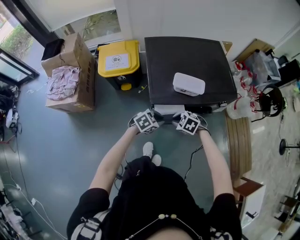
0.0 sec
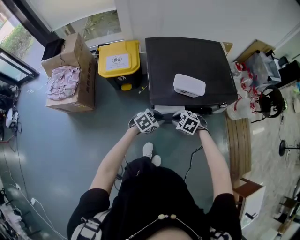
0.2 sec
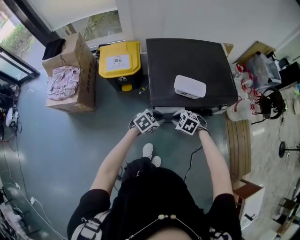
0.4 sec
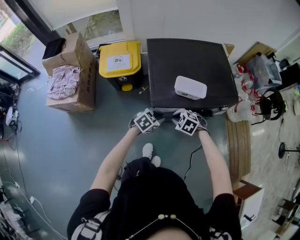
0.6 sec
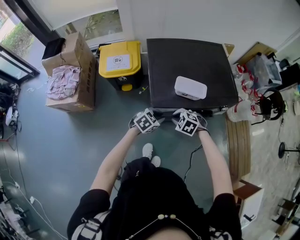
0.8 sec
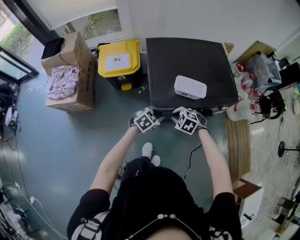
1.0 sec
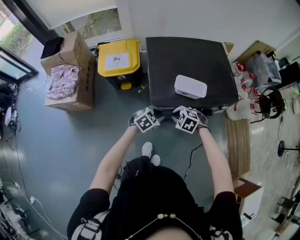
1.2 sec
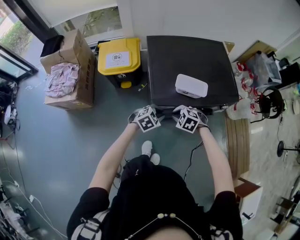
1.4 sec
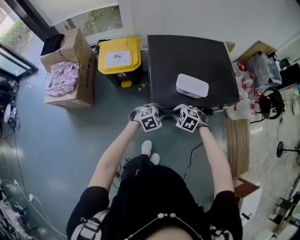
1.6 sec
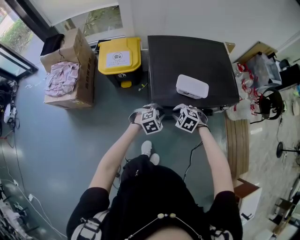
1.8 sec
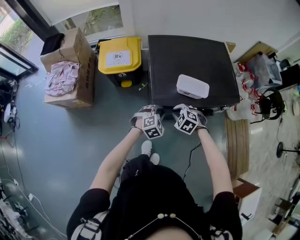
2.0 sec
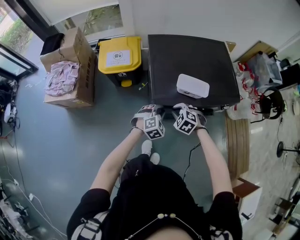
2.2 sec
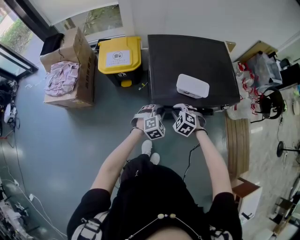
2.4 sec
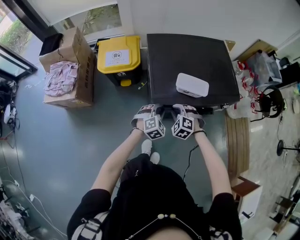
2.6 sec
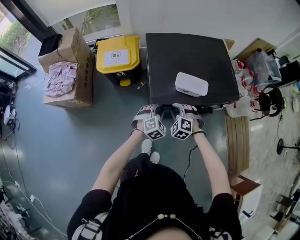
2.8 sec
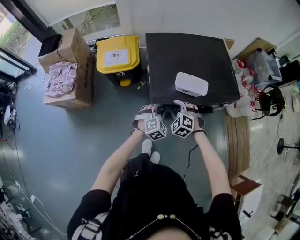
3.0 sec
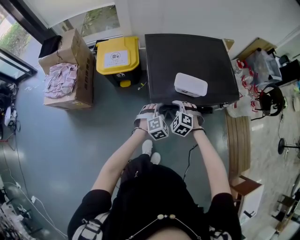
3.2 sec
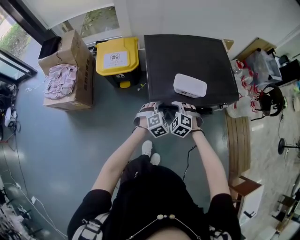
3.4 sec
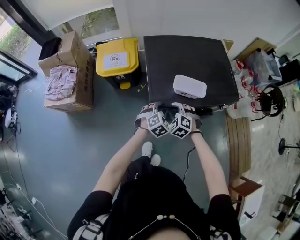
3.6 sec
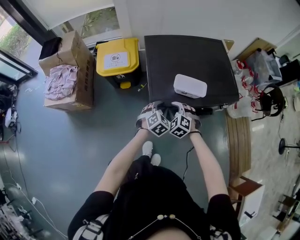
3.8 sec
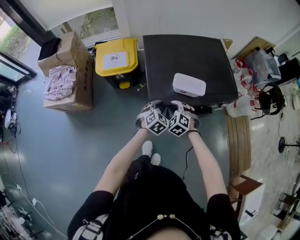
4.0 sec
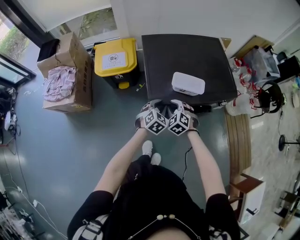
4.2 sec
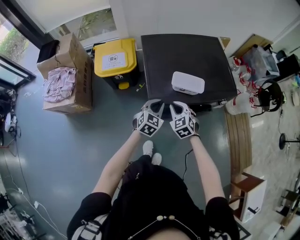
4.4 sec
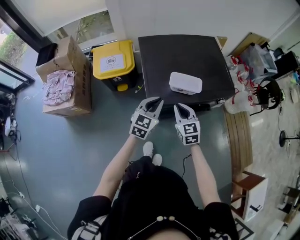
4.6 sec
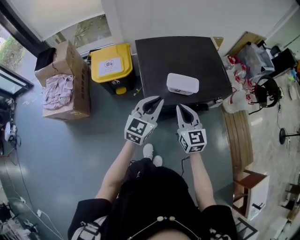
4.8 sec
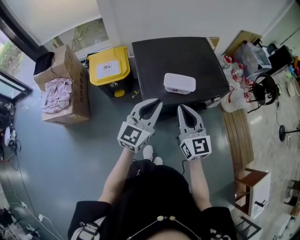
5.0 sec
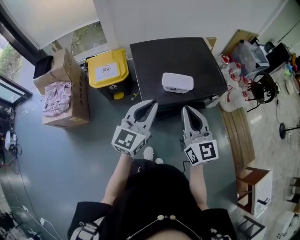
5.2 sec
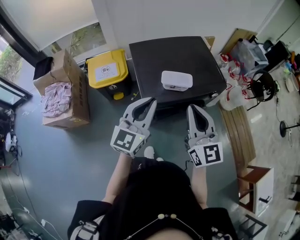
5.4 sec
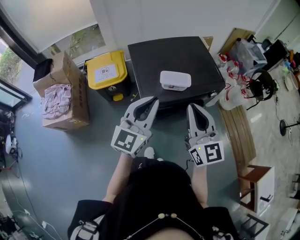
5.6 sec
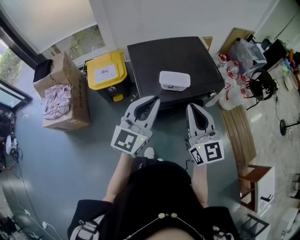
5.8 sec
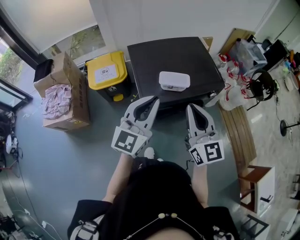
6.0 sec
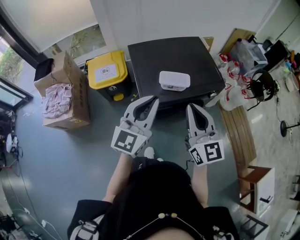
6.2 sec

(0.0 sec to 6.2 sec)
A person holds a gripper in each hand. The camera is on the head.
0.0 sec - 1.6 sec: The grippers move only a little.
1.6 sec - 3.2 sec: The right gripper opens; the left gripper swivels about 20 degrees.
3.2 sec - 4.6 sec: Both grippers move upward, about 10 cm. The right gripper rotates around the line of its fingers by some 50 degrees, clockwise from behind, and closes up; the left gripper changes its angle by about 50 degrees.
4.6 sec - 6.2 sec: The grippers both shift upward and backward by about 25 cm. The left gripper rotates roughly 20 degrees, while the right gripper changes its angle by about 30 degrees.

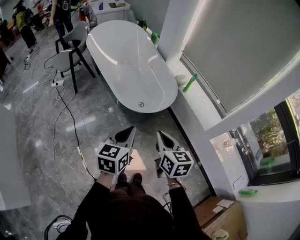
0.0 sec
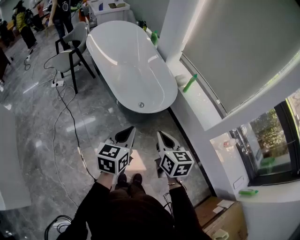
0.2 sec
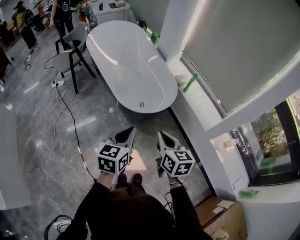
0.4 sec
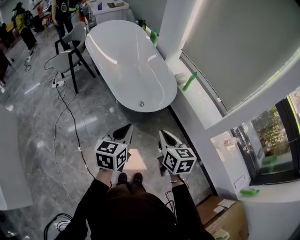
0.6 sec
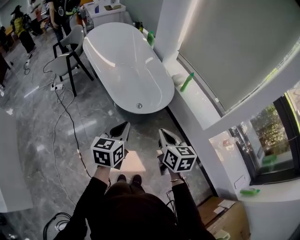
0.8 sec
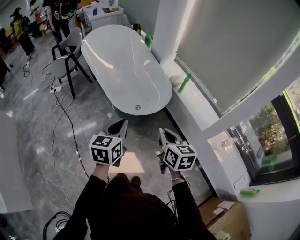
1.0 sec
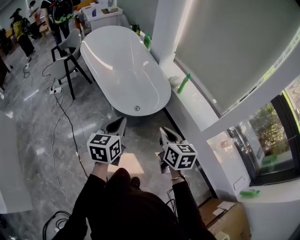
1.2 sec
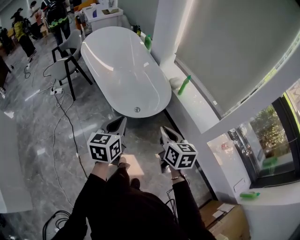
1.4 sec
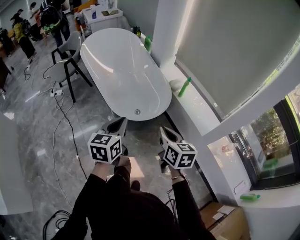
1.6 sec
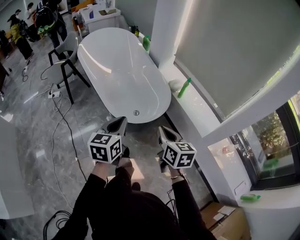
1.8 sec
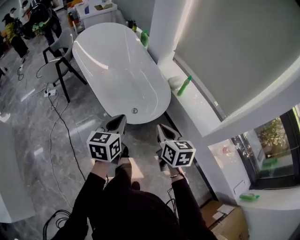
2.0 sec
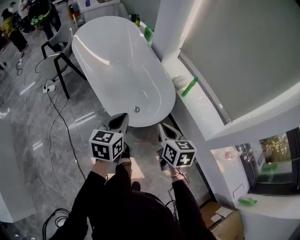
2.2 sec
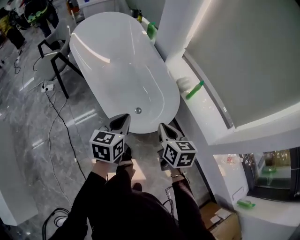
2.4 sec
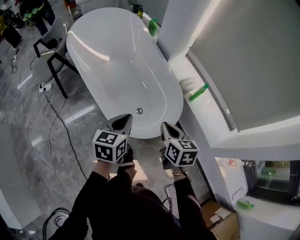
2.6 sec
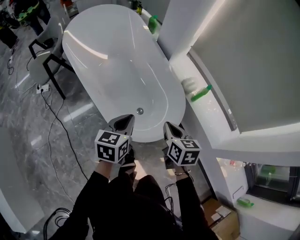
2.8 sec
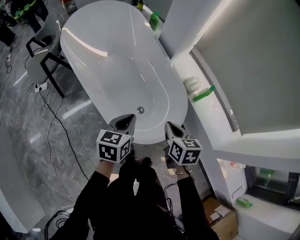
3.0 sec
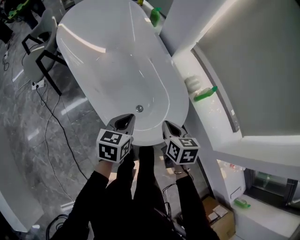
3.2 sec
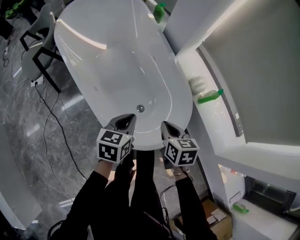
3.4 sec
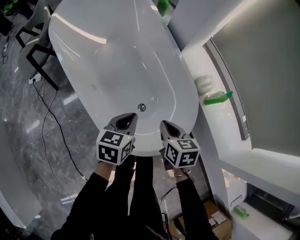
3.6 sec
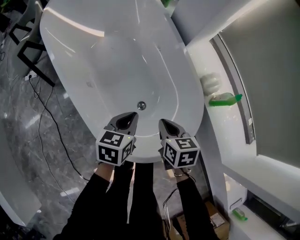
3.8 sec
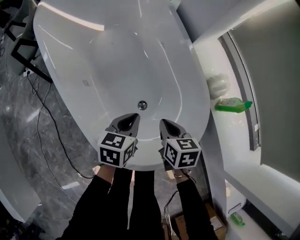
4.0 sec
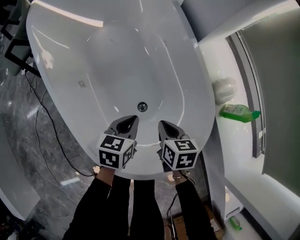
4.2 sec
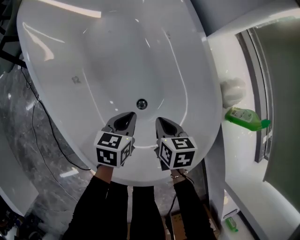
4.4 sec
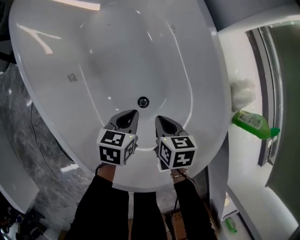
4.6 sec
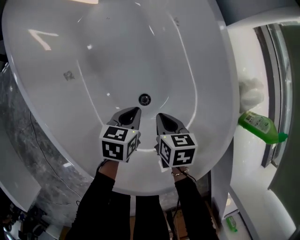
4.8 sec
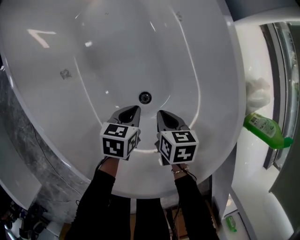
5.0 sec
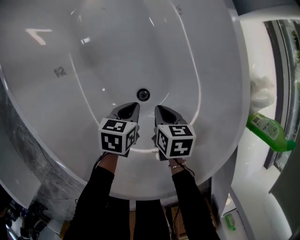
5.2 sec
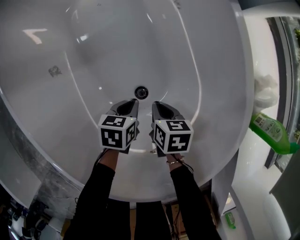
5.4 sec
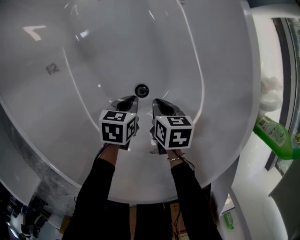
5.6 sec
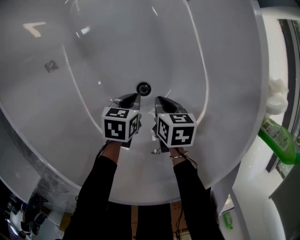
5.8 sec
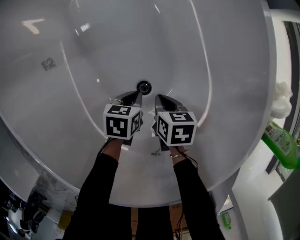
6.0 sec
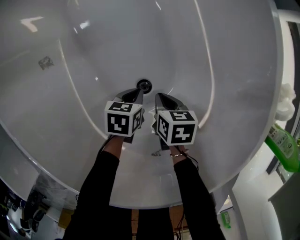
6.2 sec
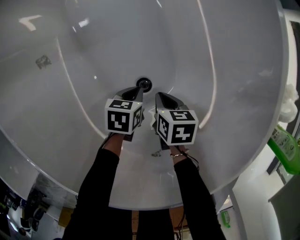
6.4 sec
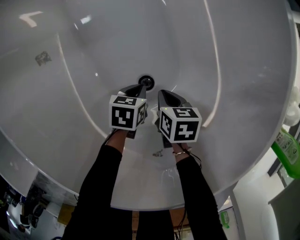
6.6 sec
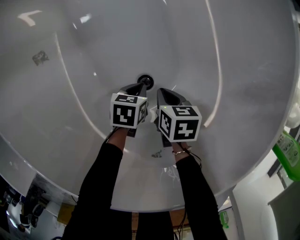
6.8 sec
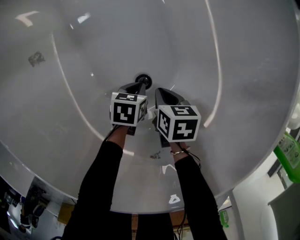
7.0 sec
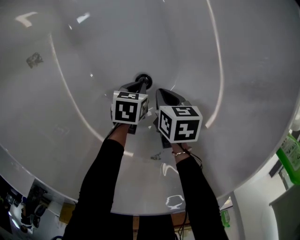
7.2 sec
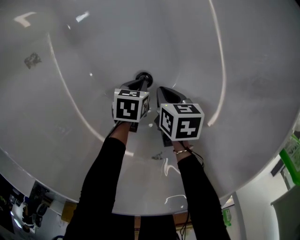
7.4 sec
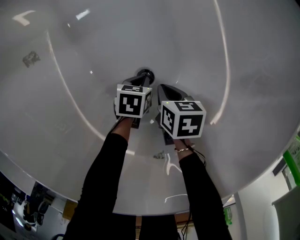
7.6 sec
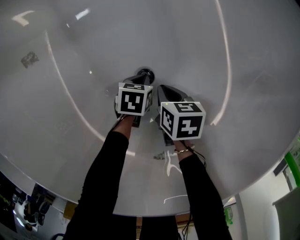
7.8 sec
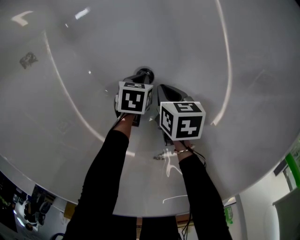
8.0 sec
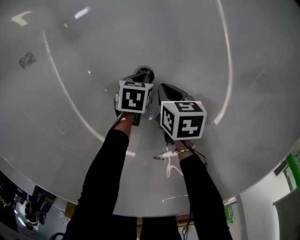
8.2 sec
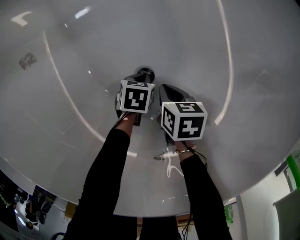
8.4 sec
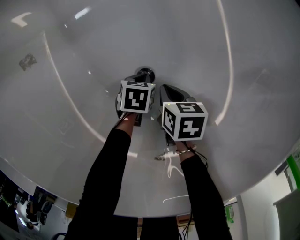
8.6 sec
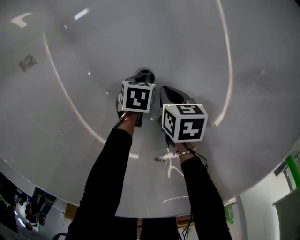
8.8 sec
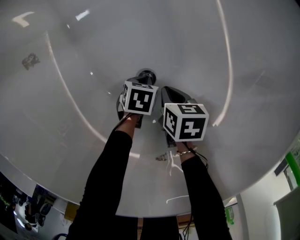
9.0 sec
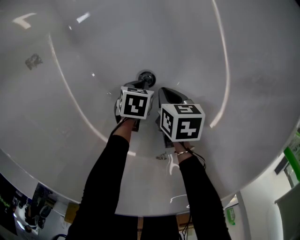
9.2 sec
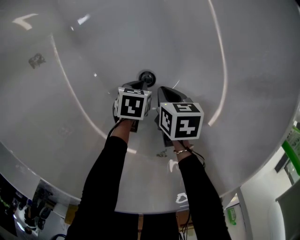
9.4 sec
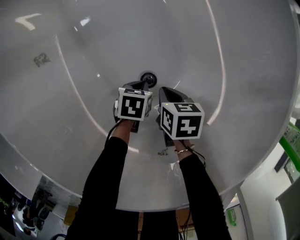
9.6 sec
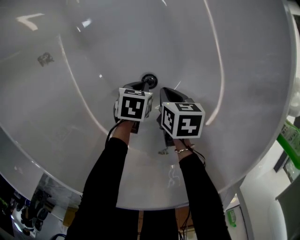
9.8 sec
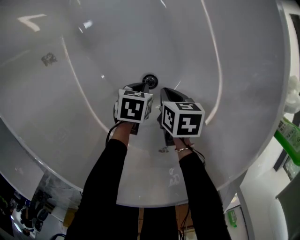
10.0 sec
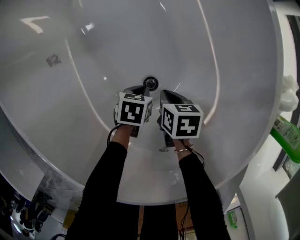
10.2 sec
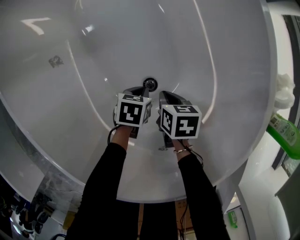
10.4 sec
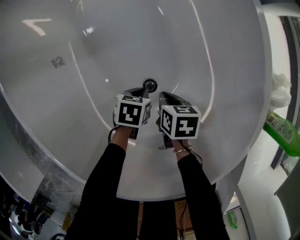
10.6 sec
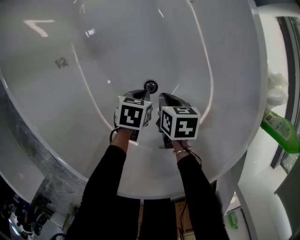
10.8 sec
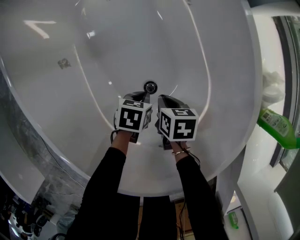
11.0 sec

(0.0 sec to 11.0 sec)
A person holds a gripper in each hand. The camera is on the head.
0.0 sec - 1.6 sec: The right gripper is displaced to the right and forward by some 10 cm; the left gripper travels forward by about 10 cm.
1.6 sec - 3.2 sec: The right gripper heads forward, covering about 30 cm. Meanwhile the left gripper moves forward and downward, about 35 cm.
3.2 sec - 4.8 sec: The left gripper heads downward, covering some 40 cm, and rotates approximately 30 degrees, while the right gripper goes about 40 cm downward and forward, and turns by some 20 degrees.
4.8 sec - 6.2 sec: Both grippers travel together downward, about 15 cm.
6.2 sec - 7.8 sec: The right gripper shifts about 5 cm downward, while the left gripper heads downward, covering some 10 cm.
7.8 sec - 9.4 sec: The grippers make only small movements.
9.4 sec - 11.0 sec: Both grippers travel together upward, roughly 10 cm.

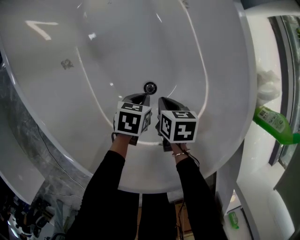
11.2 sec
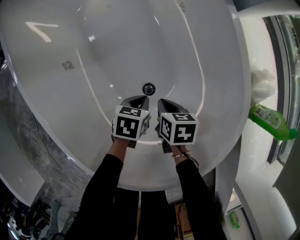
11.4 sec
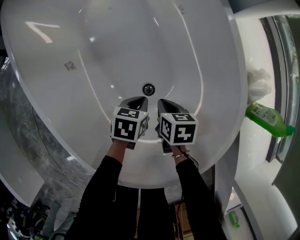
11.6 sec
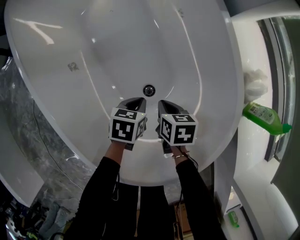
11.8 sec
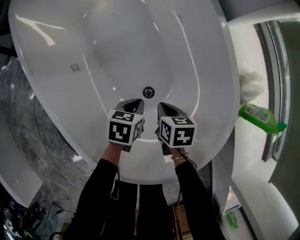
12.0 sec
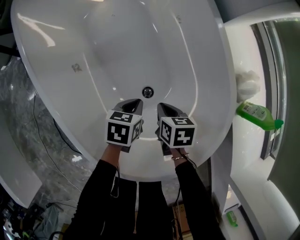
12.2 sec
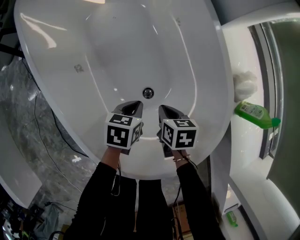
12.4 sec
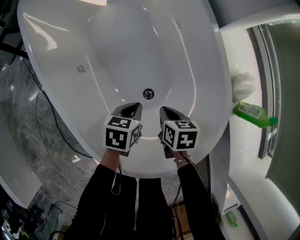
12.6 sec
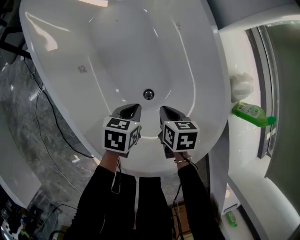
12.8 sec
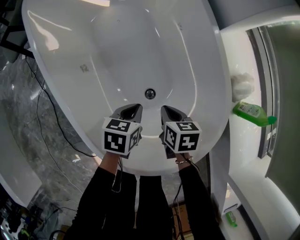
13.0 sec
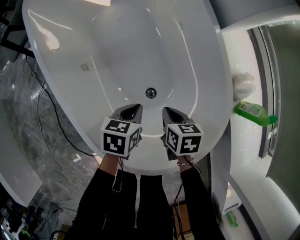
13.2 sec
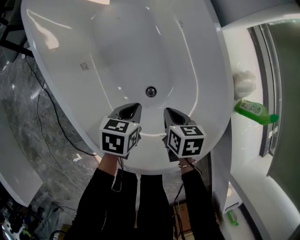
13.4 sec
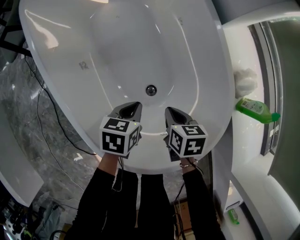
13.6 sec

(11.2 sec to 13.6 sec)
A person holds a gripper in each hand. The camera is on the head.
11.2 sec - 12.4 sec: The grippers both shift upward by some 10 cm.
12.4 sec - 13.6 sec: There are only small adjustments of the grippers.

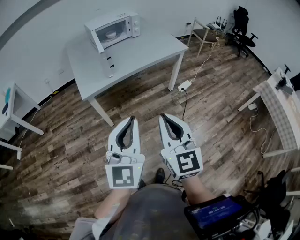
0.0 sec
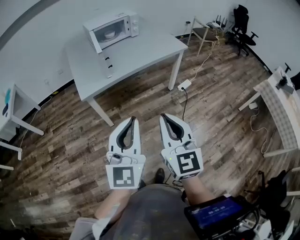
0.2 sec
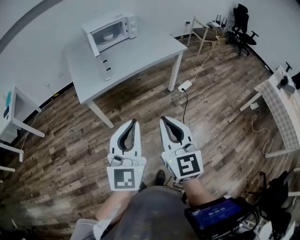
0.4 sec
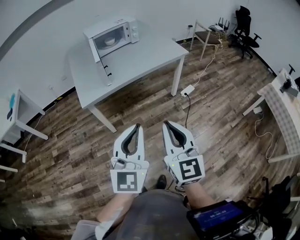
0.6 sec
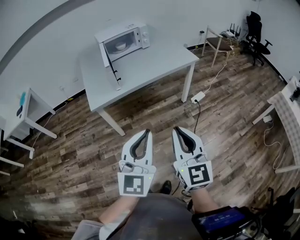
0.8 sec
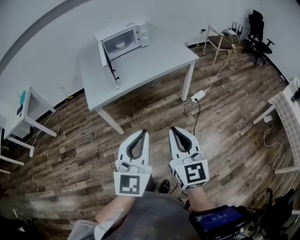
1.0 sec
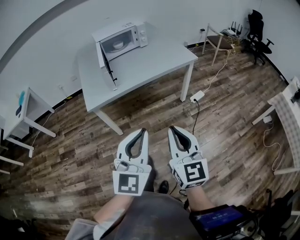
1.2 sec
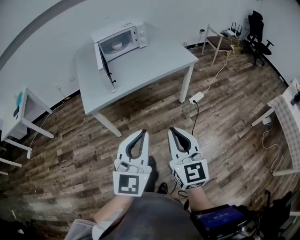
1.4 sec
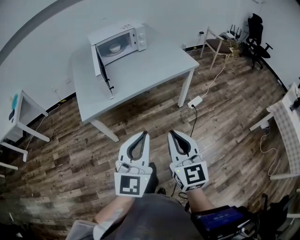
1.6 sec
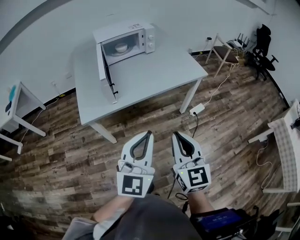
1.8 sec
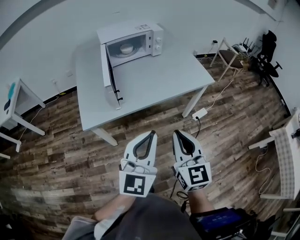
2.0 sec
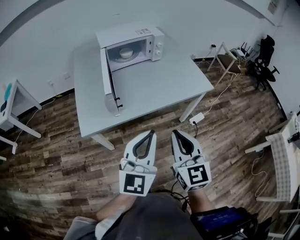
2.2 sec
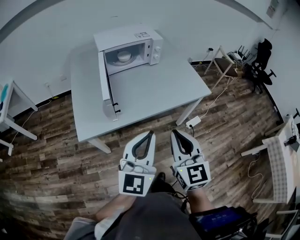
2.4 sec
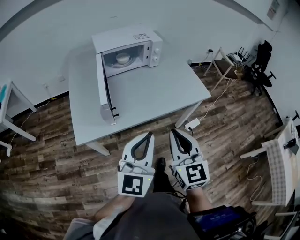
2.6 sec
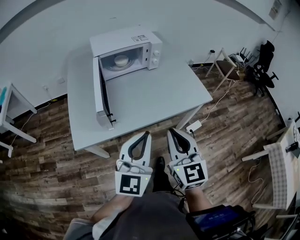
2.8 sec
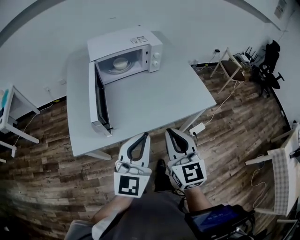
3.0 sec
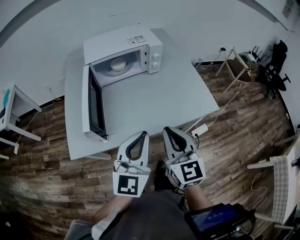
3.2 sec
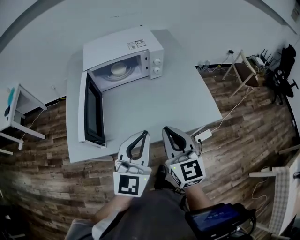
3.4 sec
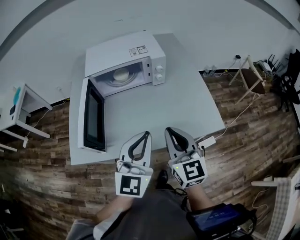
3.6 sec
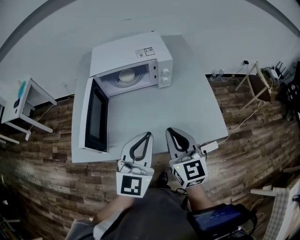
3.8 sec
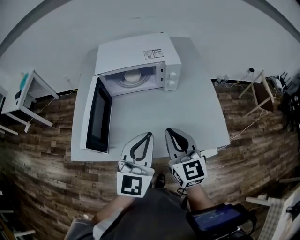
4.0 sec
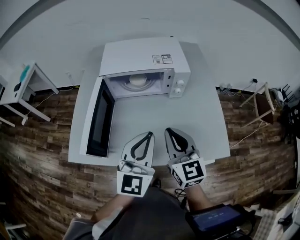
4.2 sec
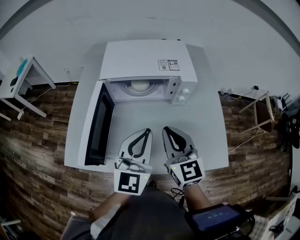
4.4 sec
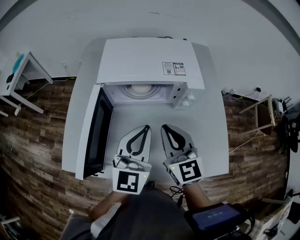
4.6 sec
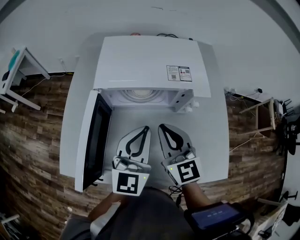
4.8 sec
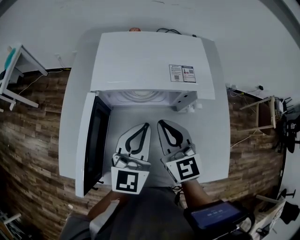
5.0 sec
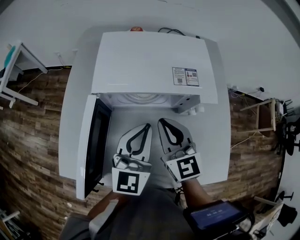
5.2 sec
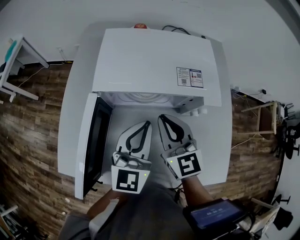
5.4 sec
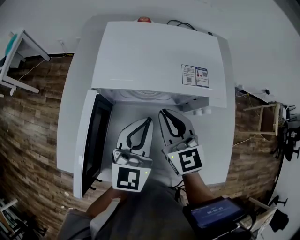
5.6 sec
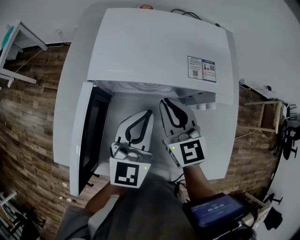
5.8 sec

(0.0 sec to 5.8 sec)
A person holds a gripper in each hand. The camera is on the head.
0.0 sec - 1.4 sec: Both grippers move to the right and forward, about 10 cm.
1.4 sec - 2.8 sec: The grippers both shift forward by some 30 cm.
2.8 sec - 4.4 sec: The two grippers go some 30 cm forward. The right gripper changes its angle by approximately 30 degrees. The left gripper rotates about 20 degrees.
4.4 sec - 5.8 sec: The two grippers go approximately 15 cm forward.
